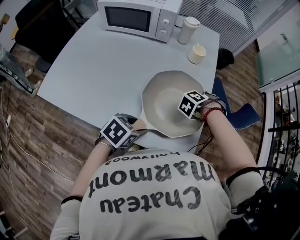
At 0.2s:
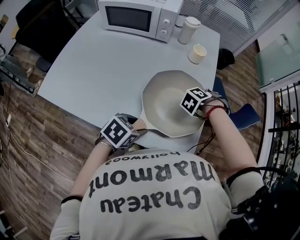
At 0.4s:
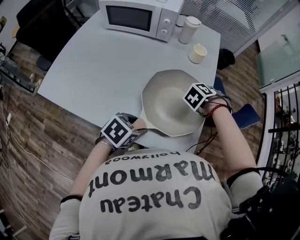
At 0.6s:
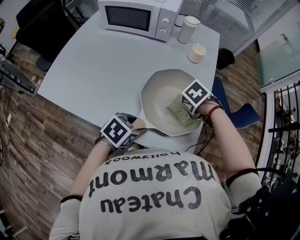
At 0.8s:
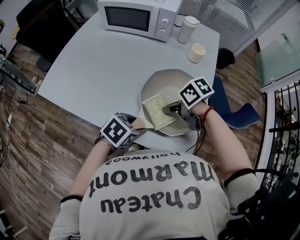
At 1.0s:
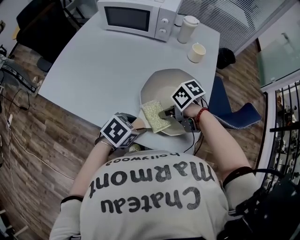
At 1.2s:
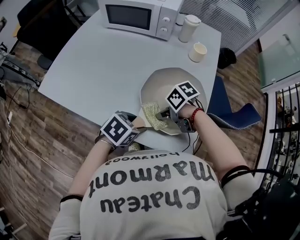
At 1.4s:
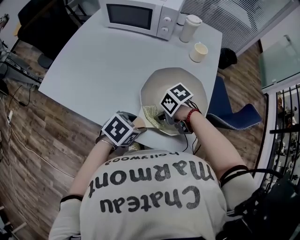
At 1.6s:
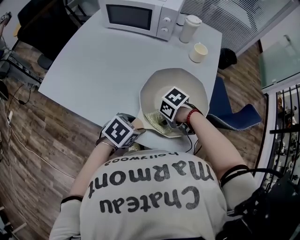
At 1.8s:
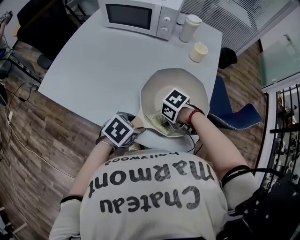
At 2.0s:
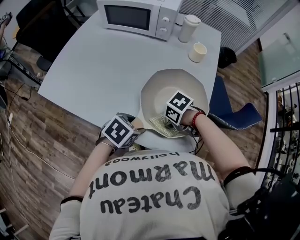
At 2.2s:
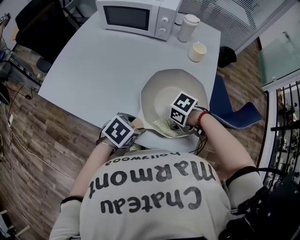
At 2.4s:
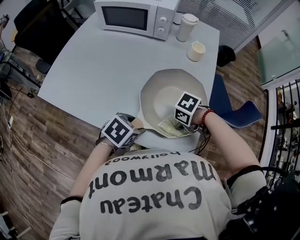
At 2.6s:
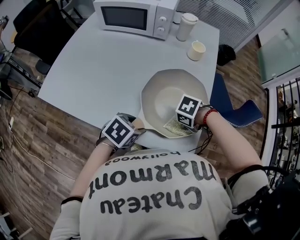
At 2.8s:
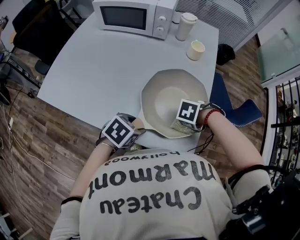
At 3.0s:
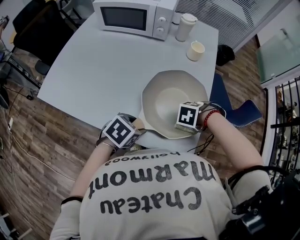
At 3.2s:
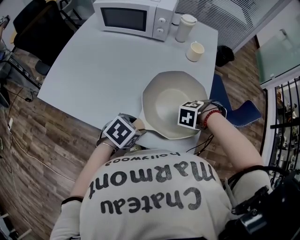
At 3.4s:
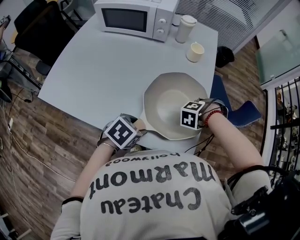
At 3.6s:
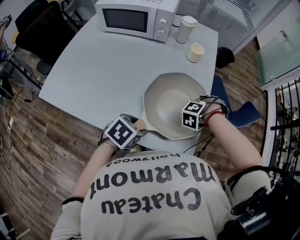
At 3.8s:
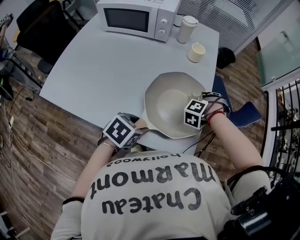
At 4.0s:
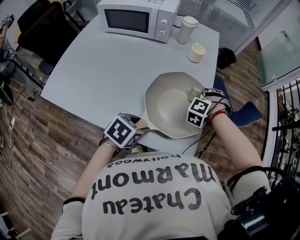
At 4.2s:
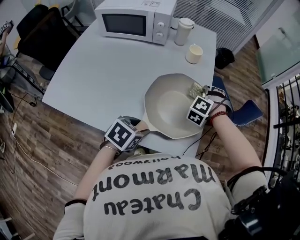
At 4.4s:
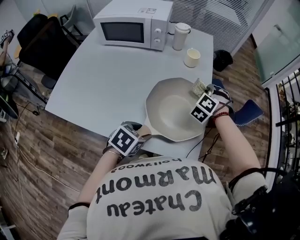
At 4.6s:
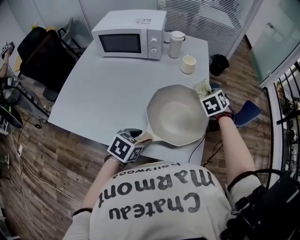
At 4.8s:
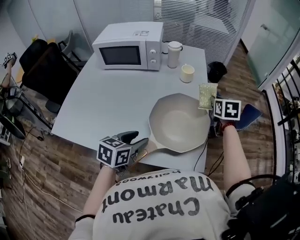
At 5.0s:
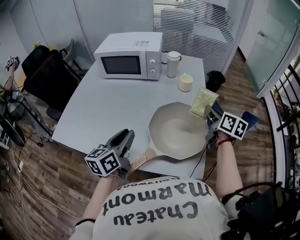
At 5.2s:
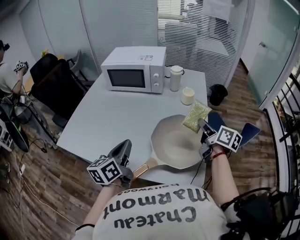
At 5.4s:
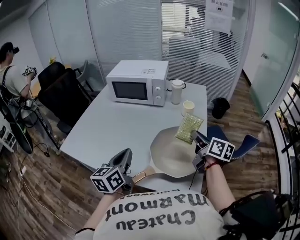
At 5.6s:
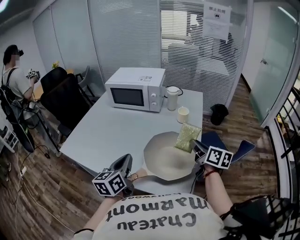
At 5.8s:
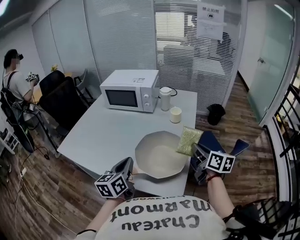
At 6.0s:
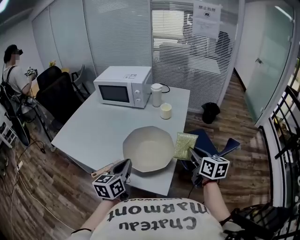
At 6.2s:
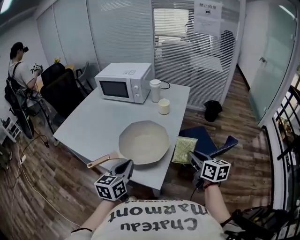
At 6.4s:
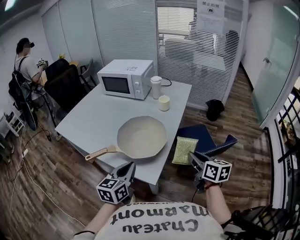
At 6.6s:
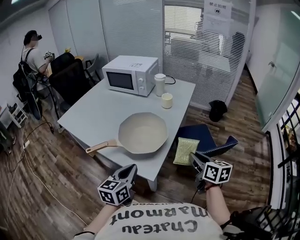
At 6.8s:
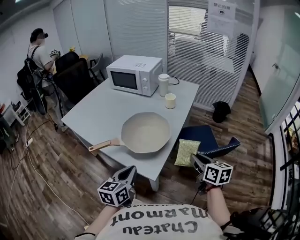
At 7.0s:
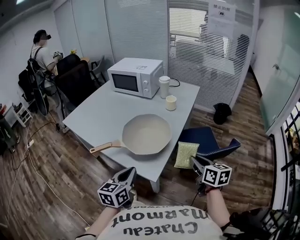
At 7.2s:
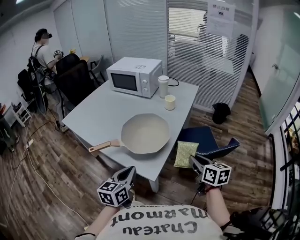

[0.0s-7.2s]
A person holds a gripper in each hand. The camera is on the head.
0.0s to 1.4s: The right gripper changes place by approximately 25 cm, and changes its angle by some 70 degrees.
1.4s to 2.8s: The right gripper ends up approximately 15 cm from where it was, and rotates roughly 50 degrees.
2.8s to 4.4s: The right gripper changes place by approximately 20 cm, and tips its fingers upward by some 30 degrees.
4.4s to 5.8s: The left gripper travels upward by some 15 cm, points its fingers about 40 degrees further upward, and closes up. Meanwhile the right gripper moves some 20 cm, and rolls clockwise, seen from behind, by roughly 90 degrees.
5.8s to 7.2s: The left gripper goes approximately 25 cm backward and to the right, while the right gripper goes some 20 cm backward, to the right and downward.

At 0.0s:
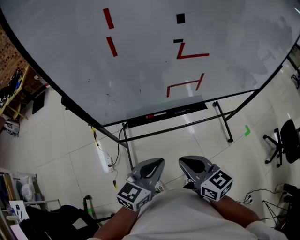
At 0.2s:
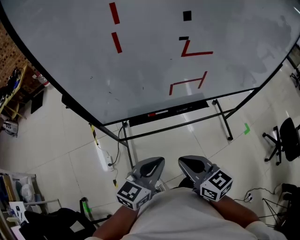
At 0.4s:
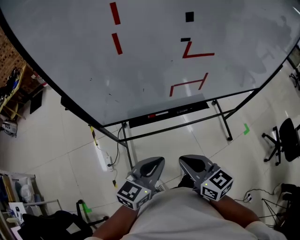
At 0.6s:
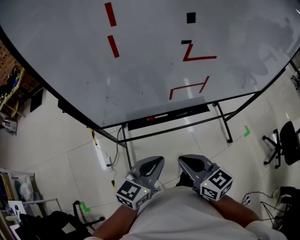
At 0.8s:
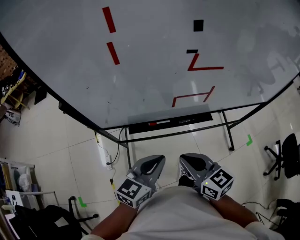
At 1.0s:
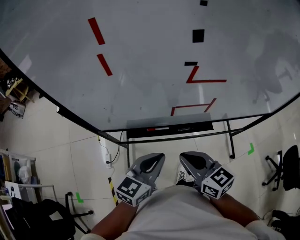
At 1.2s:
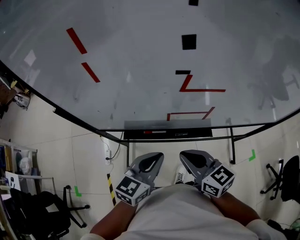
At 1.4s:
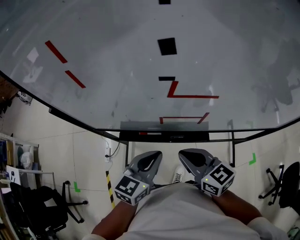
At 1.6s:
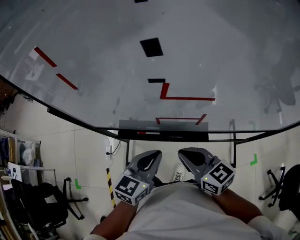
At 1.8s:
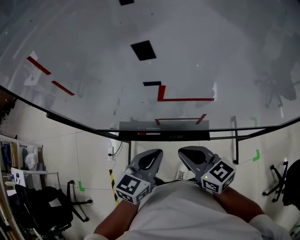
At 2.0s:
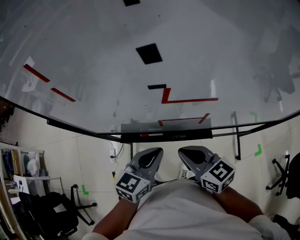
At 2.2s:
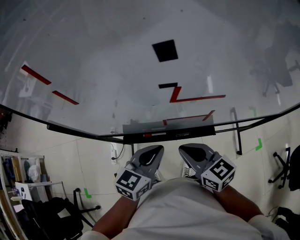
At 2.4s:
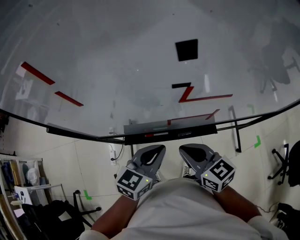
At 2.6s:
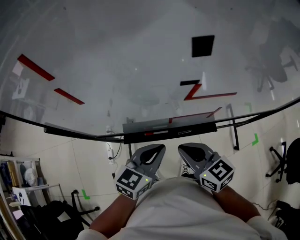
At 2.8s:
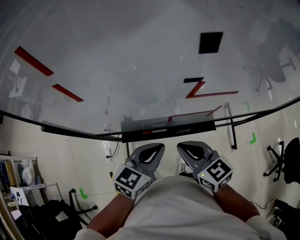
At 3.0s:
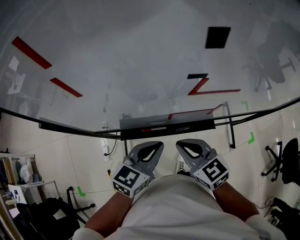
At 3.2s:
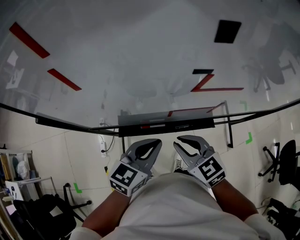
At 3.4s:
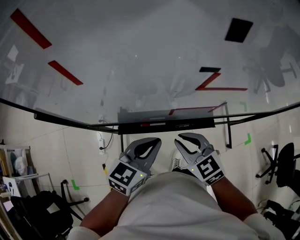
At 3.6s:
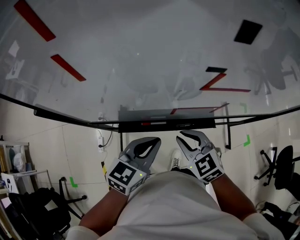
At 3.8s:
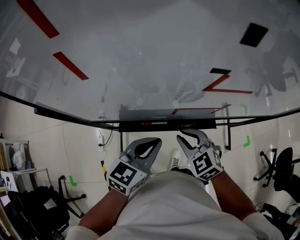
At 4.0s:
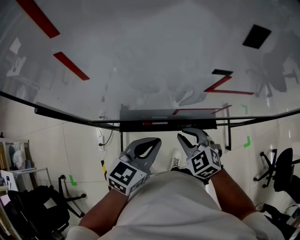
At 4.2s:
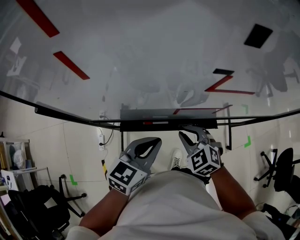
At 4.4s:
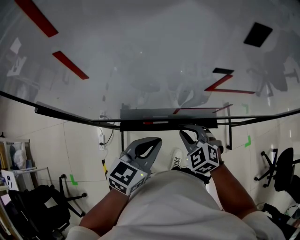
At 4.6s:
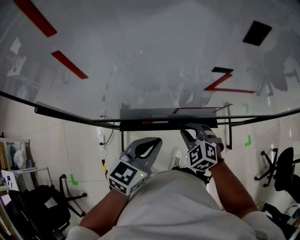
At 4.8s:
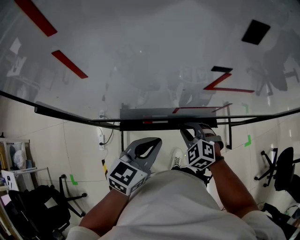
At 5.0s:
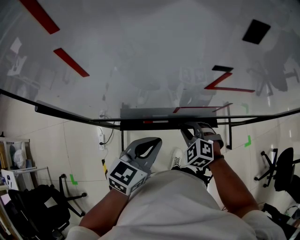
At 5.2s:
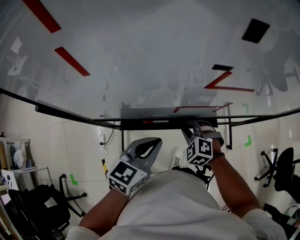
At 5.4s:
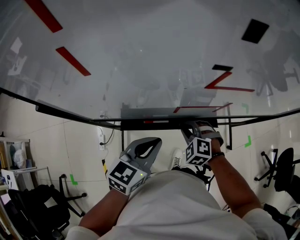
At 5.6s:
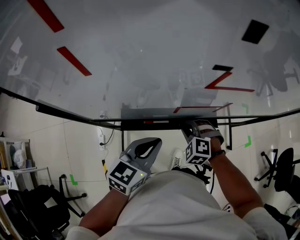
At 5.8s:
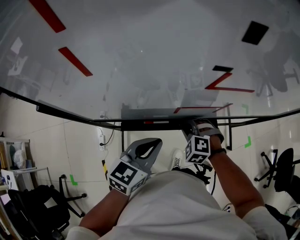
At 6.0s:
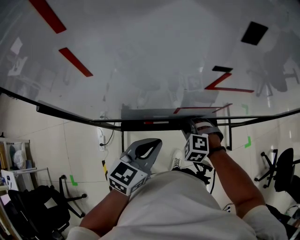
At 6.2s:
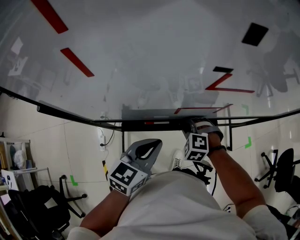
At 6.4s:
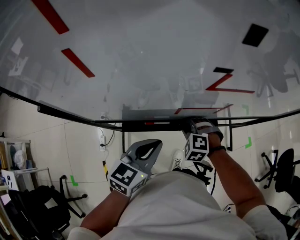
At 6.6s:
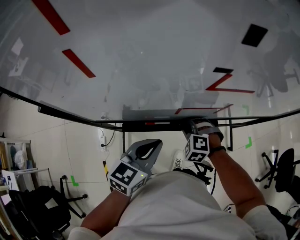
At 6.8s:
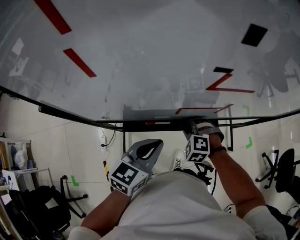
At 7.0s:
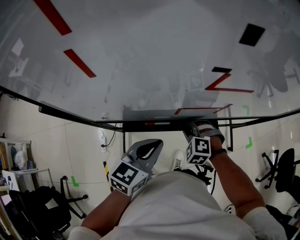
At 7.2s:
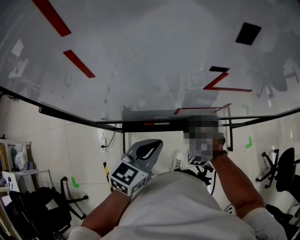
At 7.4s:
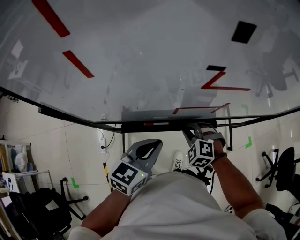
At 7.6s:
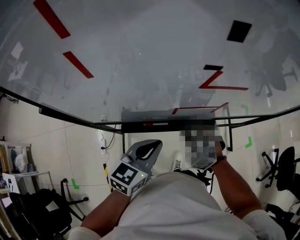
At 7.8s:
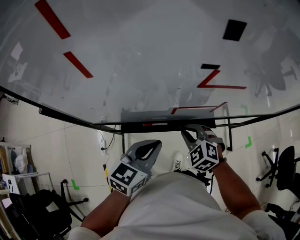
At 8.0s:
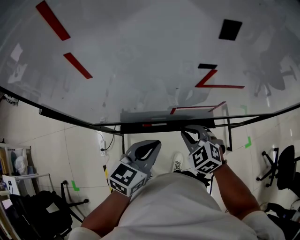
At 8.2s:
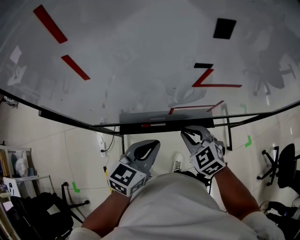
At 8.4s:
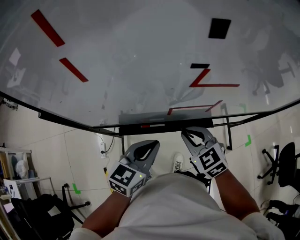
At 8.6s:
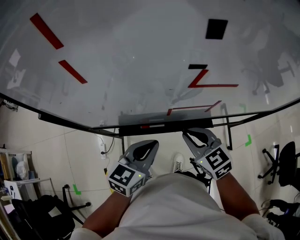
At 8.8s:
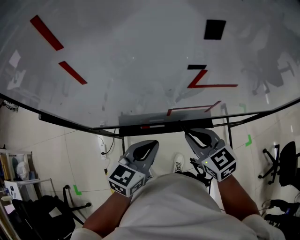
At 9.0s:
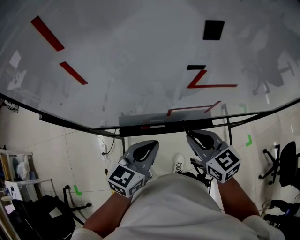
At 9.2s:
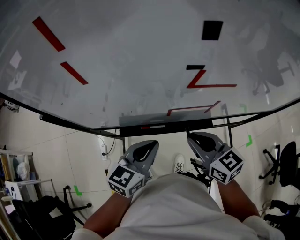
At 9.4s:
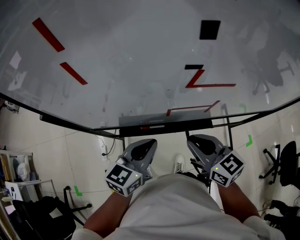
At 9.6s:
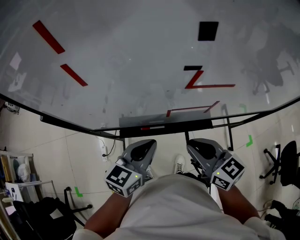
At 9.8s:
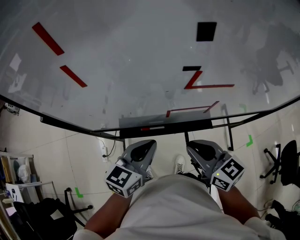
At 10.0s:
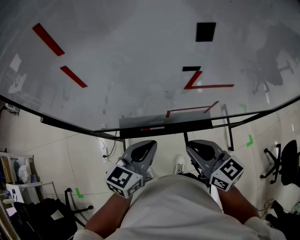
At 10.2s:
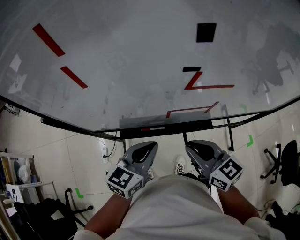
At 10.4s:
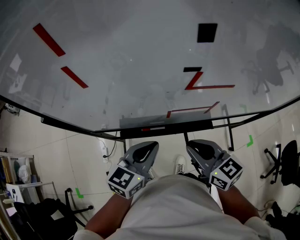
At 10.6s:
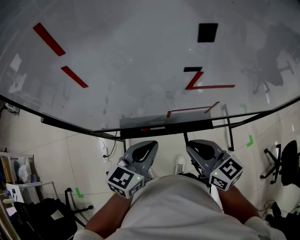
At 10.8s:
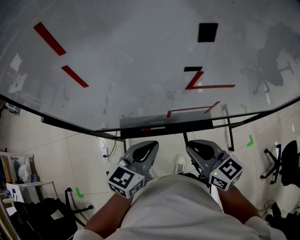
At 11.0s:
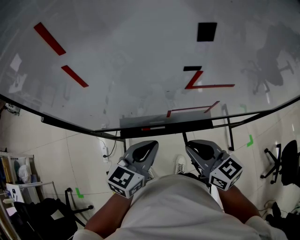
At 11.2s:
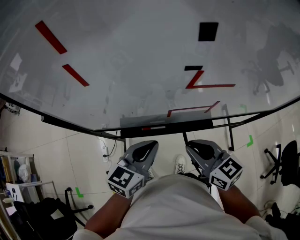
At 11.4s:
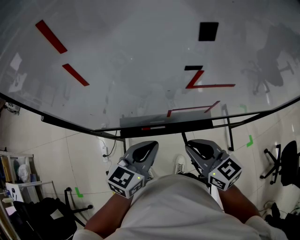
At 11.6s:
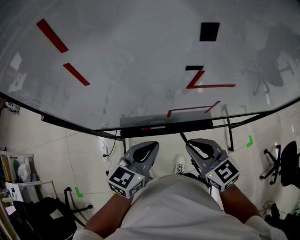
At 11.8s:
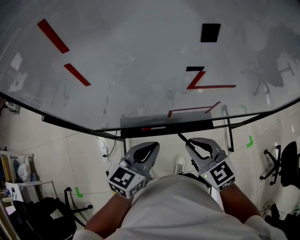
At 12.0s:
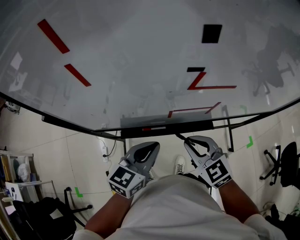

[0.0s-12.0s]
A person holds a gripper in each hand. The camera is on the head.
0.0s to 1.6s: The two grippers go approximately 20 cm forward and to the right. The left gripper turns by some 20 degrees.
1.6s to 3.0s: The right gripper travels to the left by some 5 cm.
3.0s to 4.4s: The right gripper heads downward, covering roughly 10 cm, and rotates about 40 degrees.
4.4s to 6.0s: The right gripper shifts some 5 cm downward, and changes its angle by approximately 30 degrees.
6.0s to 7.6s: The grippers move only a little.
7.6s to 9.0s: The right gripper travels upward by some 10 cm, and twists approximately 40 degrees clockwise, seen from behind.
9.0s to 10.4s: The grippers make only small movements.
10.4s to 12.0s: The right gripper rotates roughly 30 degrees.

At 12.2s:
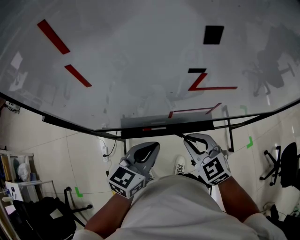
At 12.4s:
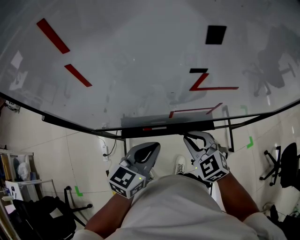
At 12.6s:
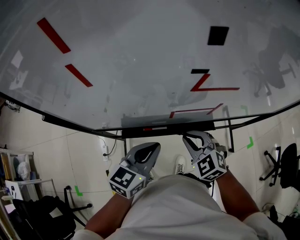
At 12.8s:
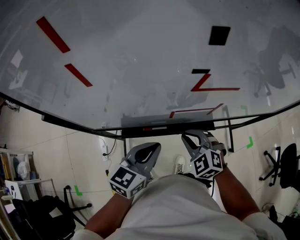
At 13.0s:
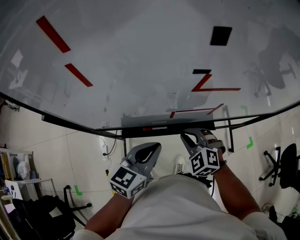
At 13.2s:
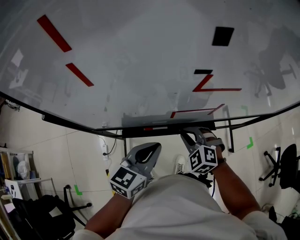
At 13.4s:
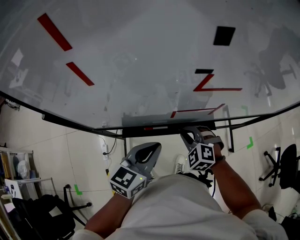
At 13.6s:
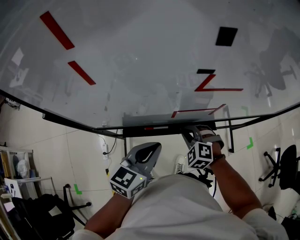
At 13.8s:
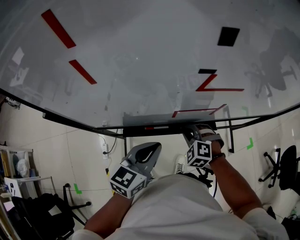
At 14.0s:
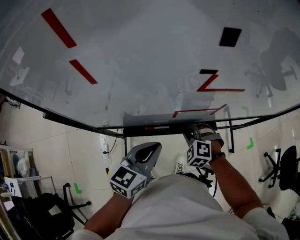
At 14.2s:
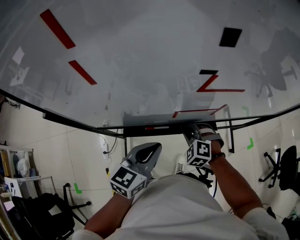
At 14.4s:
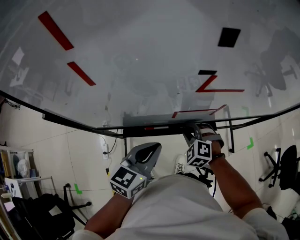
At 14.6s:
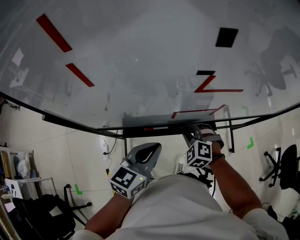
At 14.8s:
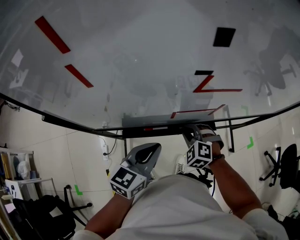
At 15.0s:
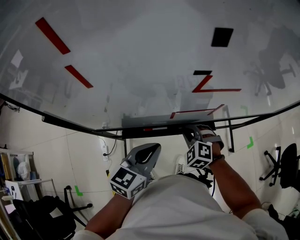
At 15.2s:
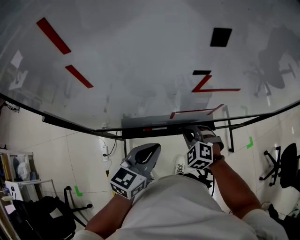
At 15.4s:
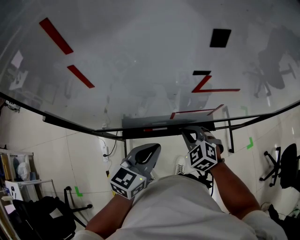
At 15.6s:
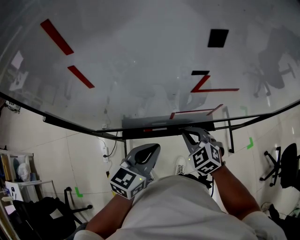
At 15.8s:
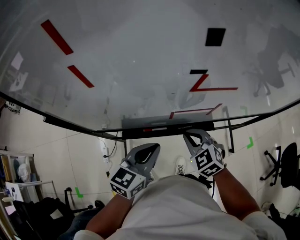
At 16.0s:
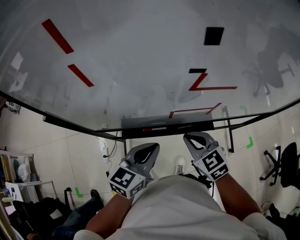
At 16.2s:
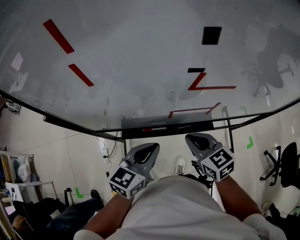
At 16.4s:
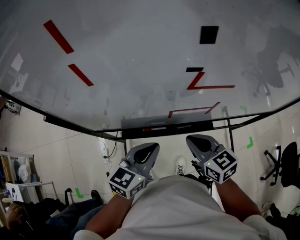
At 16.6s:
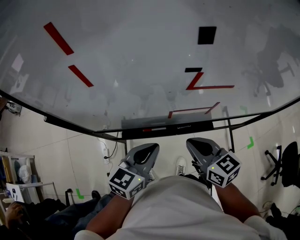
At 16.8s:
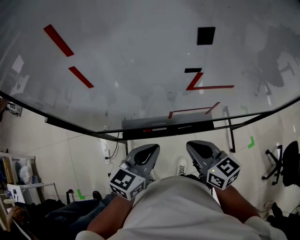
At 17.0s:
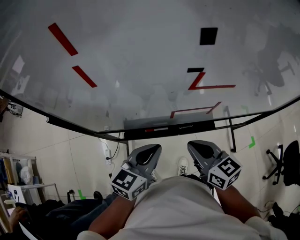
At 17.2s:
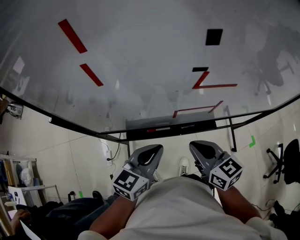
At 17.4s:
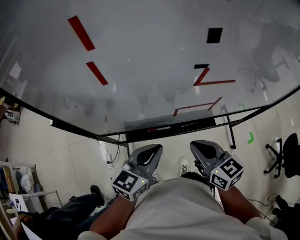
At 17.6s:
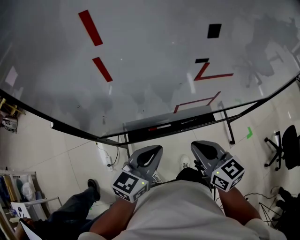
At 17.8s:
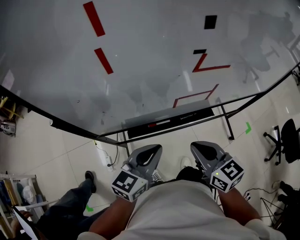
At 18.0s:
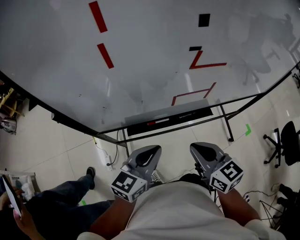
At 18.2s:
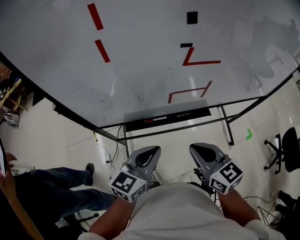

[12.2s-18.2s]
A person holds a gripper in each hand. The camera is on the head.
12.2s to 13.8s: The right gripper is displaced downward by roughly 10 cm, and swivels about 40 degrees.
13.8s to 15.2s: There are only small adjustments of the grippers.
15.2s to 16.6s: The right gripper travels upward and backward by approximately 15 cm, and rotates around the line of its fingers by some 50 degrees, clockwise from behind.
16.6s to 18.2s: Both grippers move backward, approximately 10 cm.
